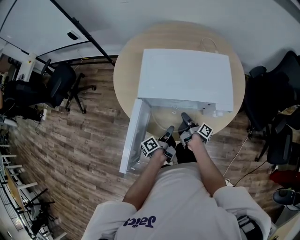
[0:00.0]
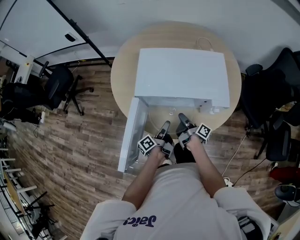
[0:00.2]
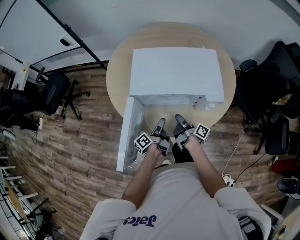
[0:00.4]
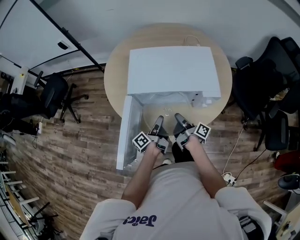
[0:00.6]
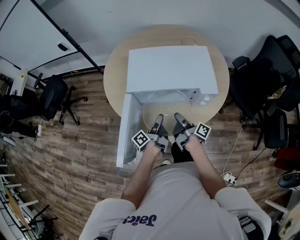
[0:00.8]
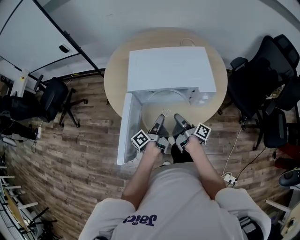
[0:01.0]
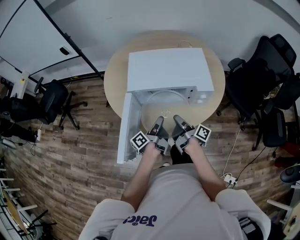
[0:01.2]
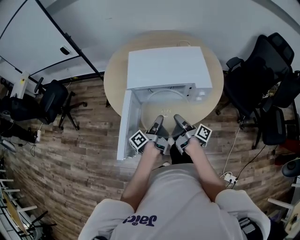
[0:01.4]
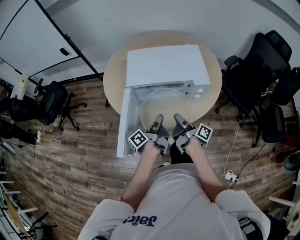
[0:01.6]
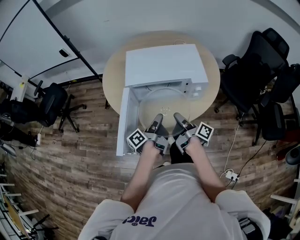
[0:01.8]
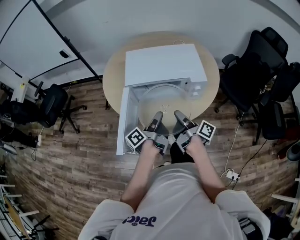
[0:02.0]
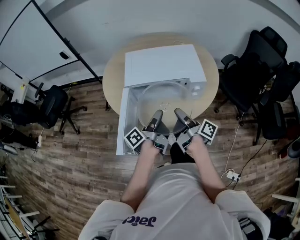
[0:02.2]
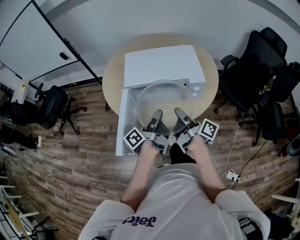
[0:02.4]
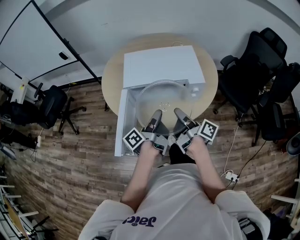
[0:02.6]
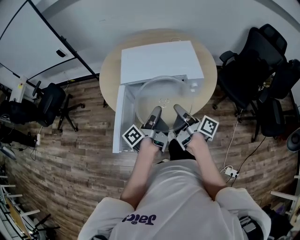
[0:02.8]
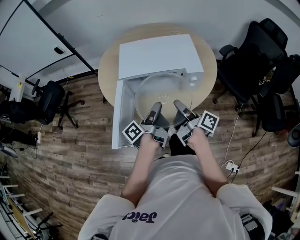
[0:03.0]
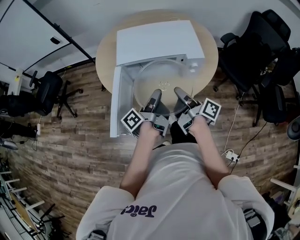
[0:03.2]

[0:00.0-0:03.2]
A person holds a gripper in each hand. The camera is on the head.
0:00.0 to 0:01.6: The right gripper moves upward, about 15 cm.
0:01.6 to 0:03.2: The right gripper goes about 5 cm upward.

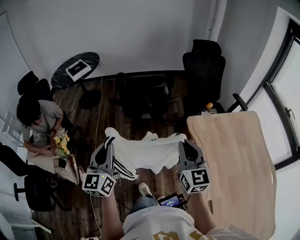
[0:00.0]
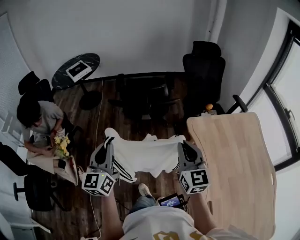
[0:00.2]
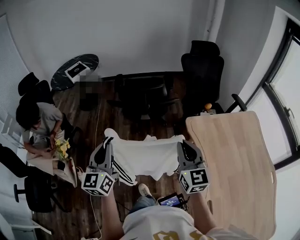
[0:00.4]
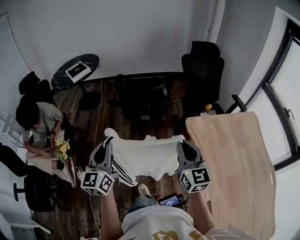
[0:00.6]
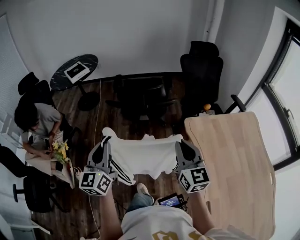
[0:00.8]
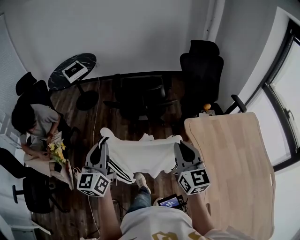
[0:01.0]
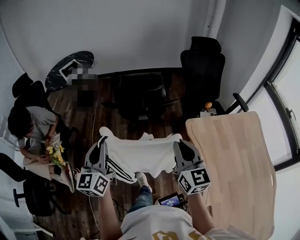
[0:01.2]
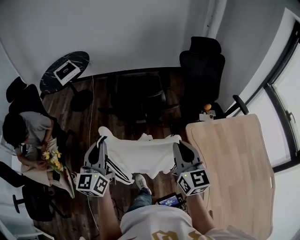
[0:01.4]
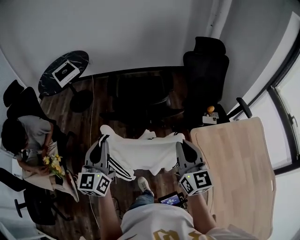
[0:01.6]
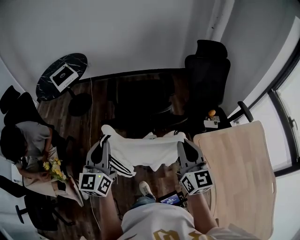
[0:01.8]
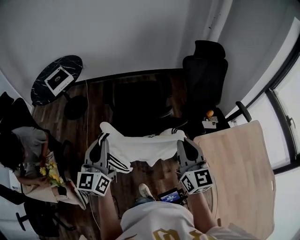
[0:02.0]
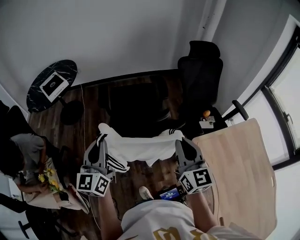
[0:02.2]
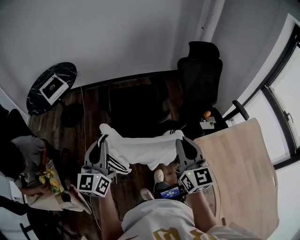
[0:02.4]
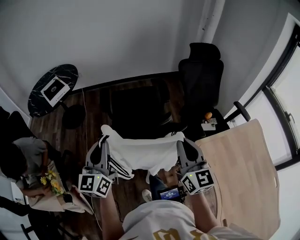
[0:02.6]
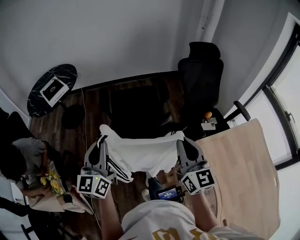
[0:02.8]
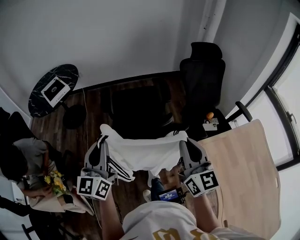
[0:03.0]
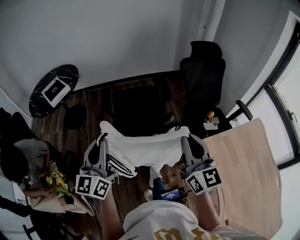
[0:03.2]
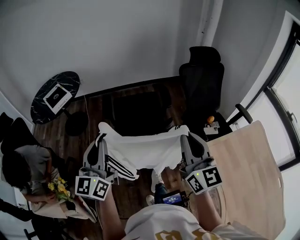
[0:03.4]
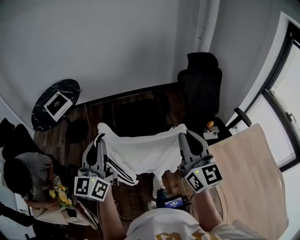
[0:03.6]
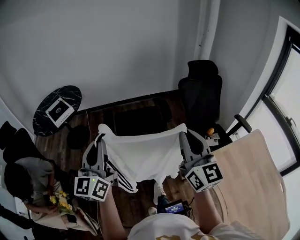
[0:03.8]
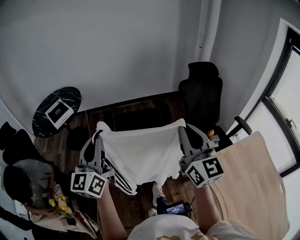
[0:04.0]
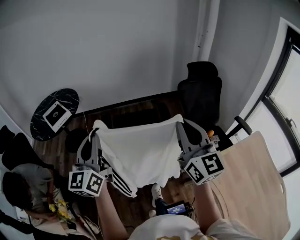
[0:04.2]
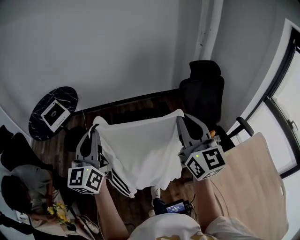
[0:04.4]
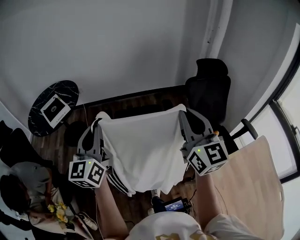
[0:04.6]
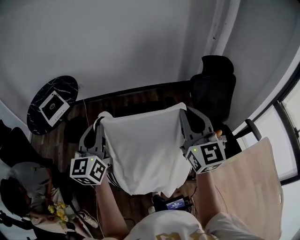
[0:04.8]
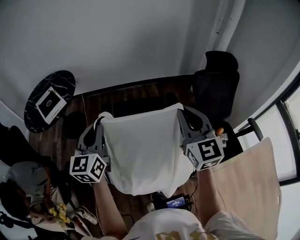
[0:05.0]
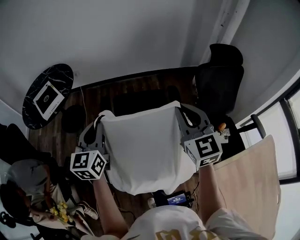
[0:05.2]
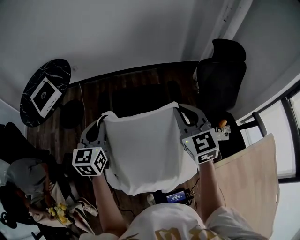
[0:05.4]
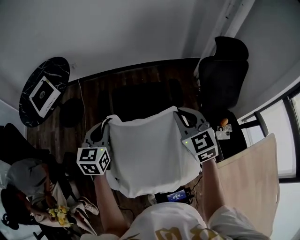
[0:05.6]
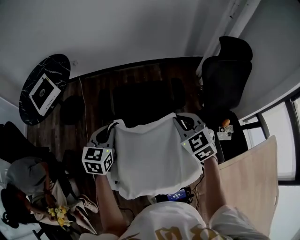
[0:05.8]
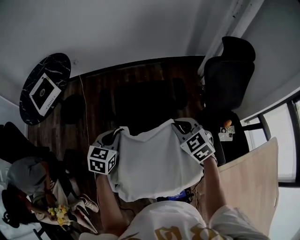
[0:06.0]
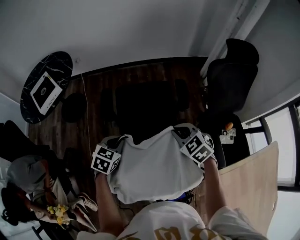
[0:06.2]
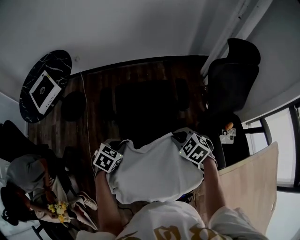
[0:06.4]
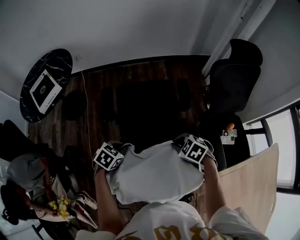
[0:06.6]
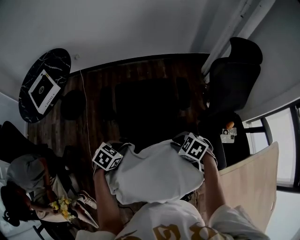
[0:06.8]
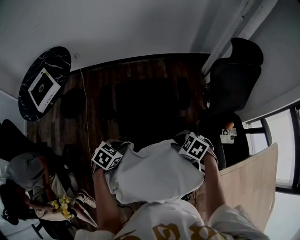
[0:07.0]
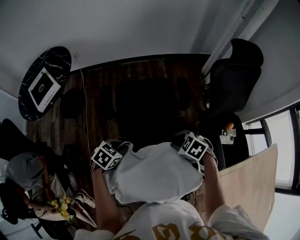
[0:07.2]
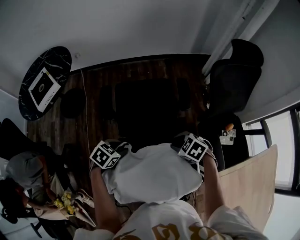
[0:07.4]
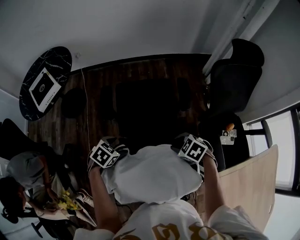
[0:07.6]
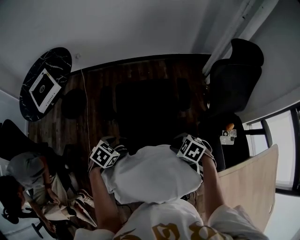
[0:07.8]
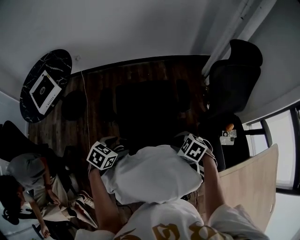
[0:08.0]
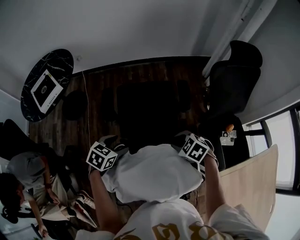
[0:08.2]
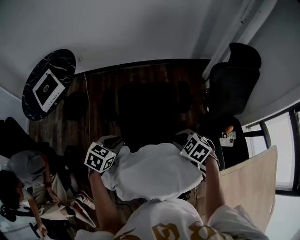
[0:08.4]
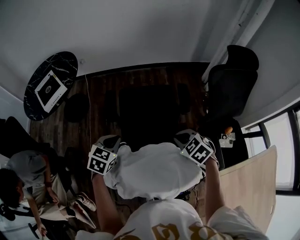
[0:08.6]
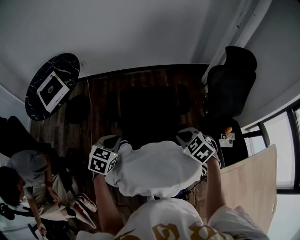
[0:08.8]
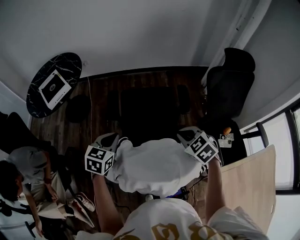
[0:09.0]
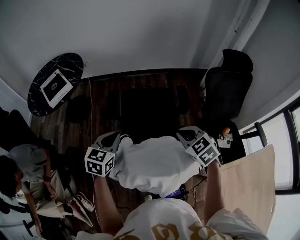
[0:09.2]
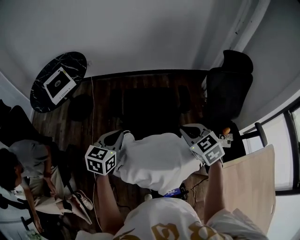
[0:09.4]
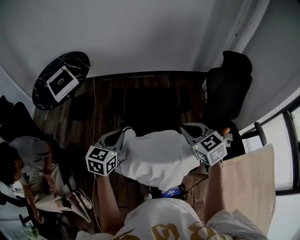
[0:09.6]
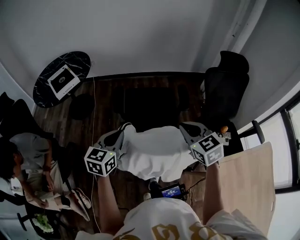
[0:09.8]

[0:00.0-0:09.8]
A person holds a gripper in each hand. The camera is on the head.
0:00.0 to 0:01.4: The grippers both shift forward by approximately 10 cm.
0:01.4 to 0:02.8: The grippers both shift forward by roughly 15 cm.
0:02.8 to 0:04.2: The grippers both shift upward and forward by roughly 15 cm.
0:04.2 to 0:05.6: The left gripper shifts roughly 30 cm downward and forward, and tilts its fingers roughly 40 degrees downward. Meanwhile the right gripper is displaced forward and downward by about 35 cm, and tips its fingers downward by approximately 40 degrees.
0:05.6 to 0:07.0: The two grippers go some 20 cm downward. The left gripper angles its fingers downward, by some 40 degrees, while the right gripper angles its fingers downward, by about 40 degrees, and opens.
0:07.0 to 0:08.4: The right gripper shifts by about 5 cm; the left gripper is displaced upward by roughly 5 cm, and opens, then closes once more.
0:08.4 to 0:09.8: The two grippers go approximately 20 cm upward and backward. The left gripper swivels some 30 degrees; the right gripper tilts its fingers roughly 30 degrees upward.

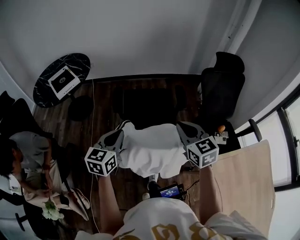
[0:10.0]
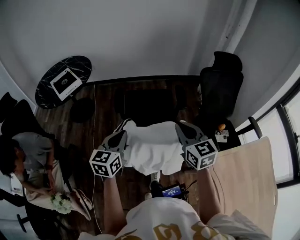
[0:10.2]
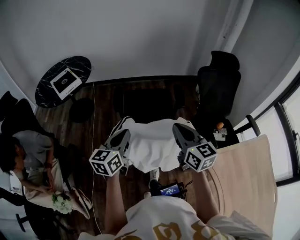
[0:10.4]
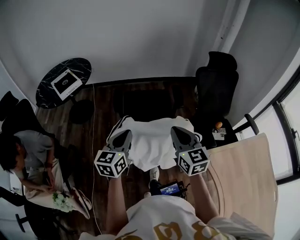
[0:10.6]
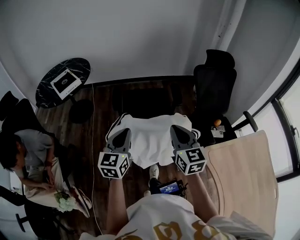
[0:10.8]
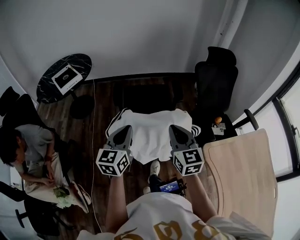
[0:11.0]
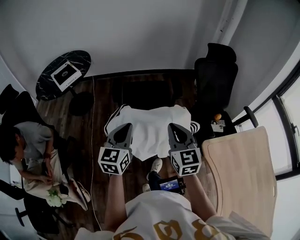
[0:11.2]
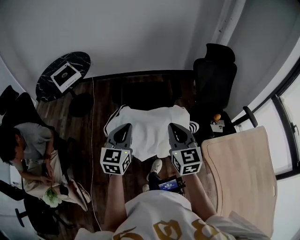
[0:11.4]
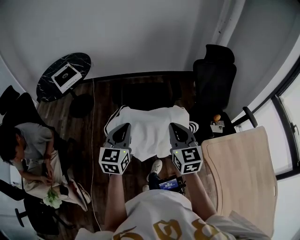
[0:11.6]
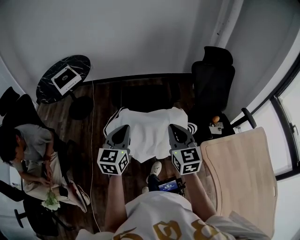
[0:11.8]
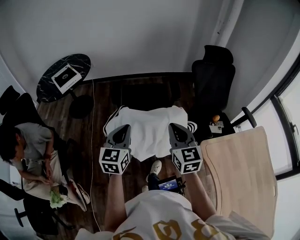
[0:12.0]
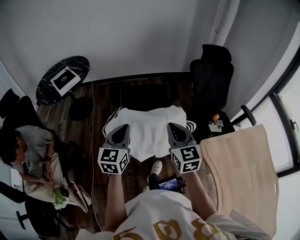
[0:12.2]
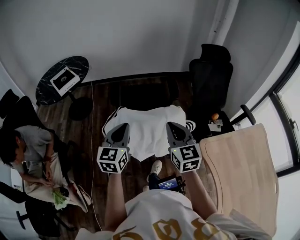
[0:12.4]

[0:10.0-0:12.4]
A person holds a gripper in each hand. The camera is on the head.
0:10.0 to 0:11.2: The left gripper is displaced backward and to the right by approximately 10 cm. Meanwhile the right gripper goes roughly 15 cm backward.
0:11.2 to 0:12.4: The grippers make only small movements.

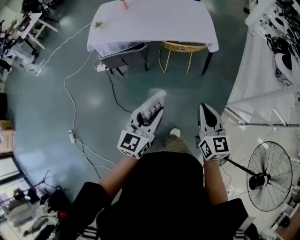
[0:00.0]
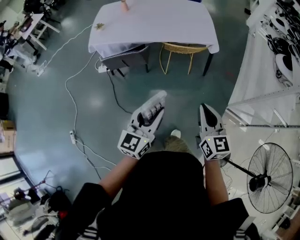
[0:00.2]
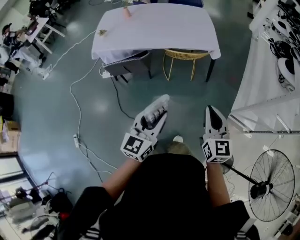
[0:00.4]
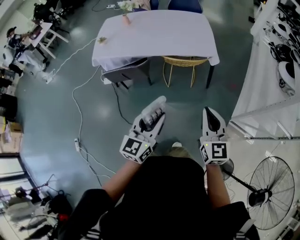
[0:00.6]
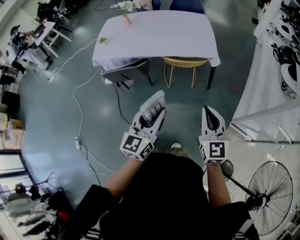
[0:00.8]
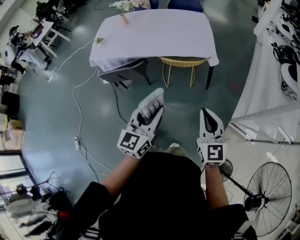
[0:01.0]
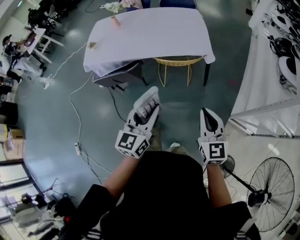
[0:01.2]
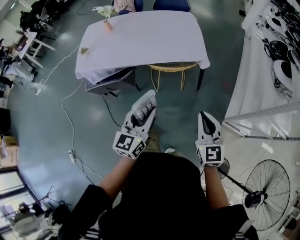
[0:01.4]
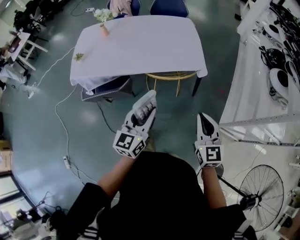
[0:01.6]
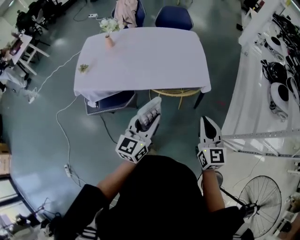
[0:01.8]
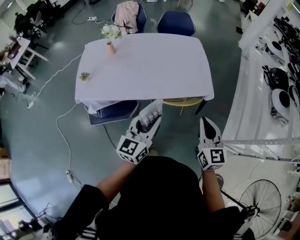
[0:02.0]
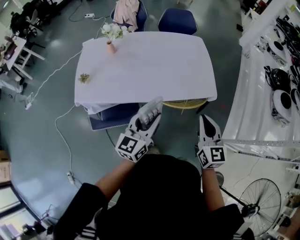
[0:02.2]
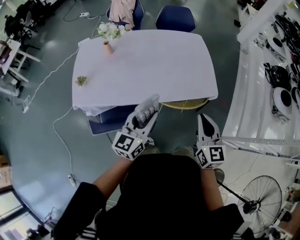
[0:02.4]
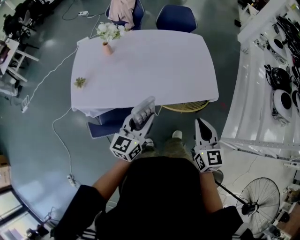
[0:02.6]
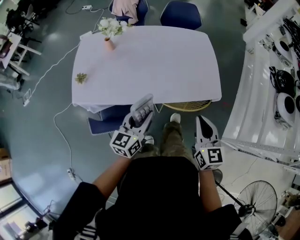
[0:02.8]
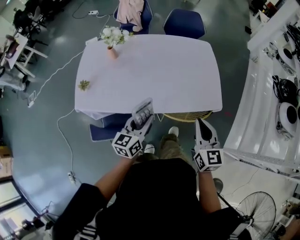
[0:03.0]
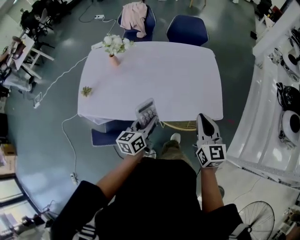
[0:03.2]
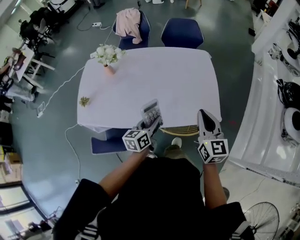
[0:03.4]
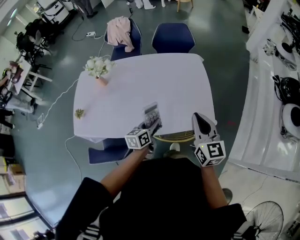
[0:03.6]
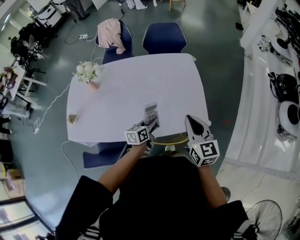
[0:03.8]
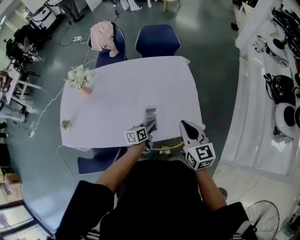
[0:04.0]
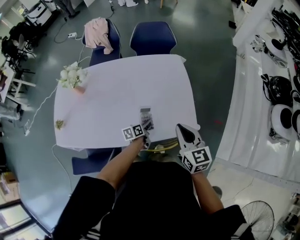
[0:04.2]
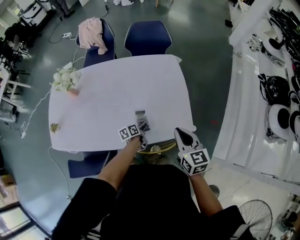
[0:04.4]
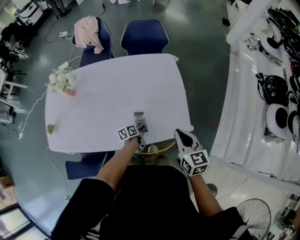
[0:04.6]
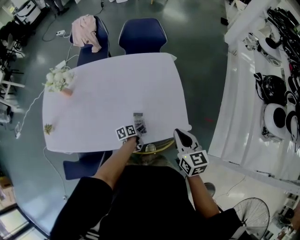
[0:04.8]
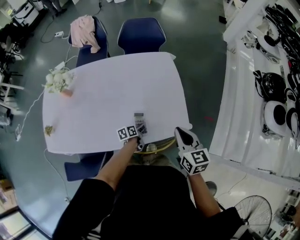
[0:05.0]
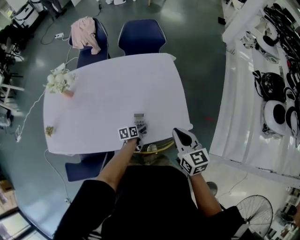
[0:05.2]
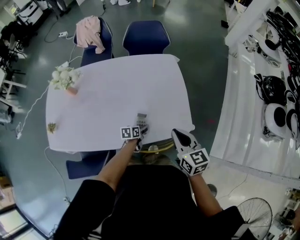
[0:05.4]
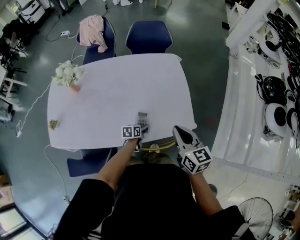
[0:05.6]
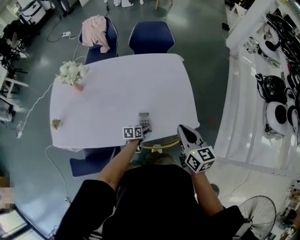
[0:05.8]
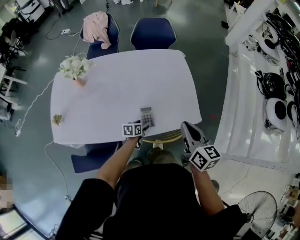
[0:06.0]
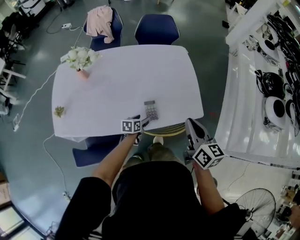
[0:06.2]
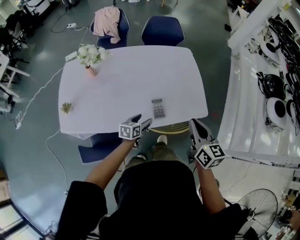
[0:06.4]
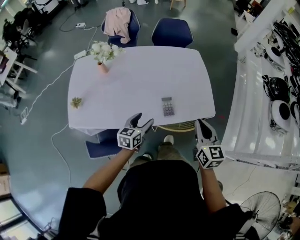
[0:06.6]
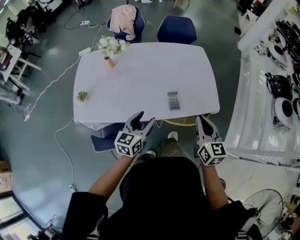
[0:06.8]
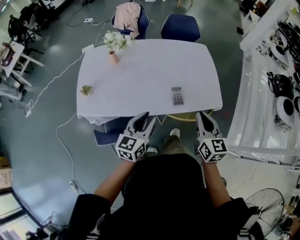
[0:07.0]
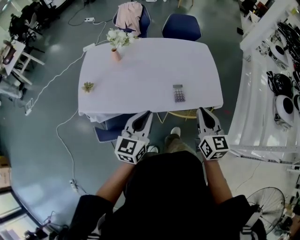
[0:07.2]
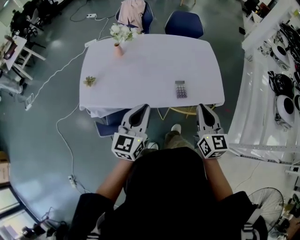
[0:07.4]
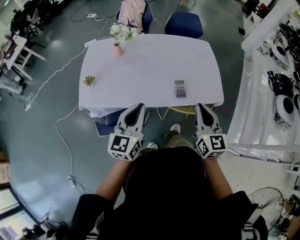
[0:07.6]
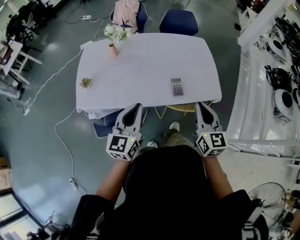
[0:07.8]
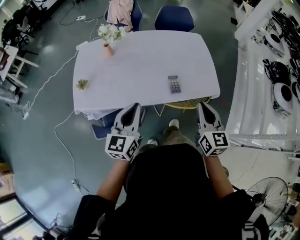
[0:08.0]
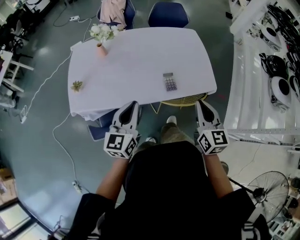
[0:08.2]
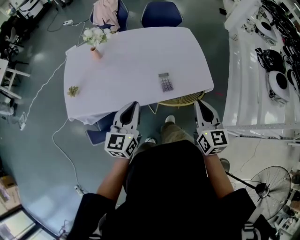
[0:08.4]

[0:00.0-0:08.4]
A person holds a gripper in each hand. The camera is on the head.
0:00.0 to 0:01.4: Both grippers move forward and to the right, roughly 20 cm.
0:01.4 to 0:02.8: Both grippers move forward and to the left, about 35 cm.
0:02.8 to 0:04.2: The right gripper heads forward and to the right, covering some 25 cm. Meanwhile the left gripper is displaced downward, forward and to the right by some 40 cm, and changes its angle by some 40 degrees.
0:04.2 to 0:05.6: The left gripper moves downward, approximately 5 cm, and opens.
0:05.6 to 0:07.0: The right gripper goes roughly 20 cm backward and to the left. Meanwhile the left gripper shifts some 40 cm upward, backward and to the left, tips its fingers upward by some 30 degrees, and closes its fingers.
0:07.0 to 0:08.4: The left gripper closes.
